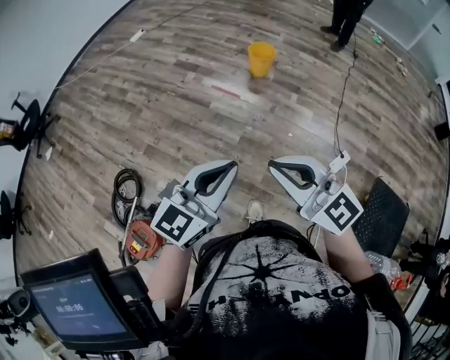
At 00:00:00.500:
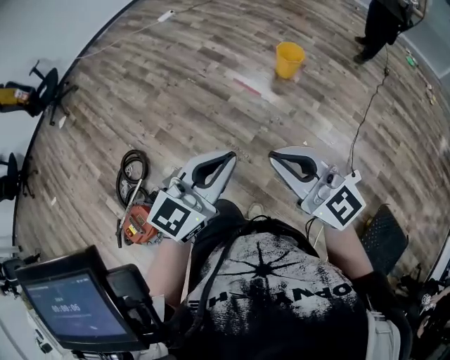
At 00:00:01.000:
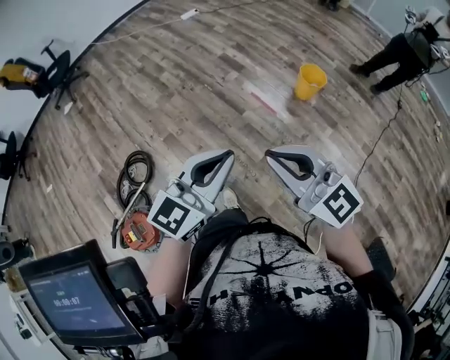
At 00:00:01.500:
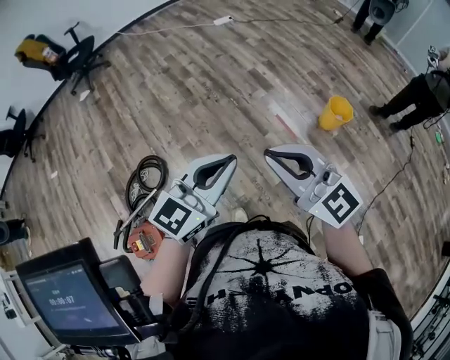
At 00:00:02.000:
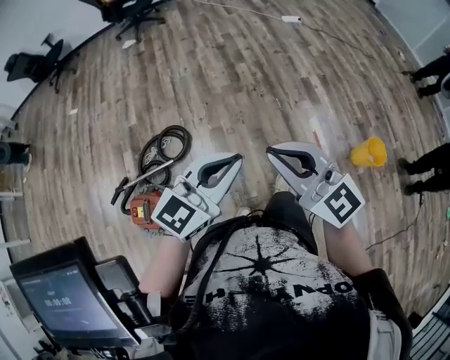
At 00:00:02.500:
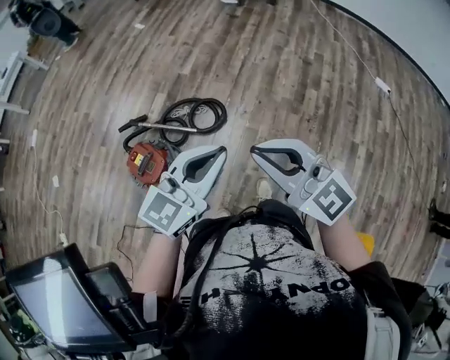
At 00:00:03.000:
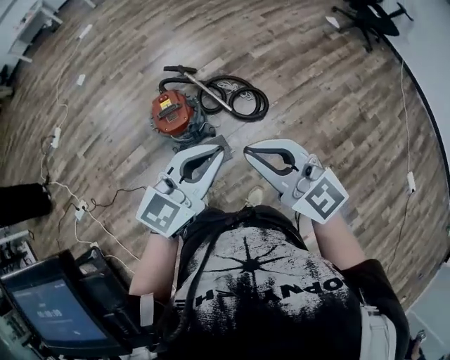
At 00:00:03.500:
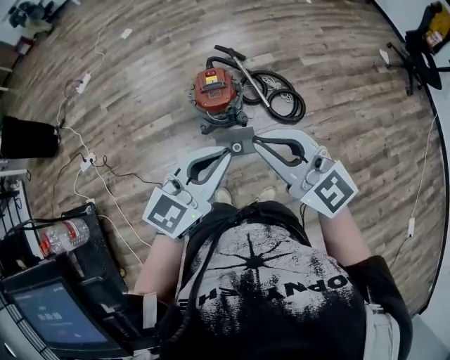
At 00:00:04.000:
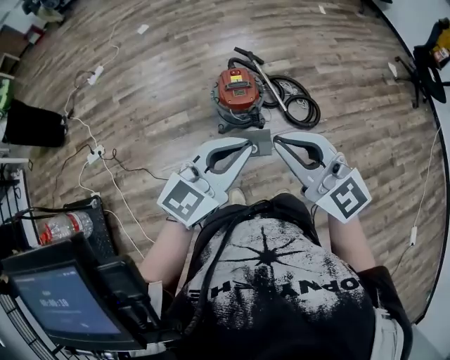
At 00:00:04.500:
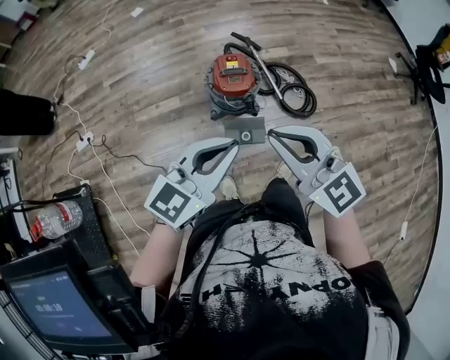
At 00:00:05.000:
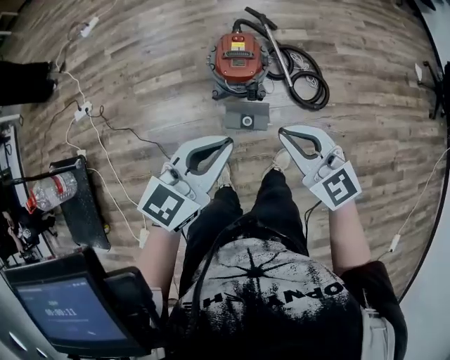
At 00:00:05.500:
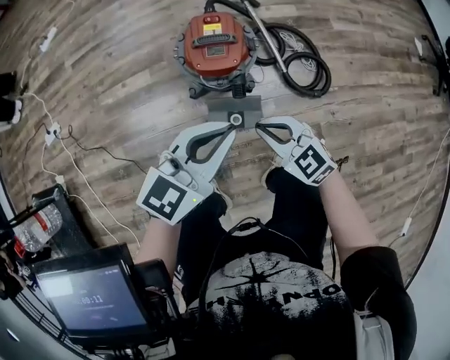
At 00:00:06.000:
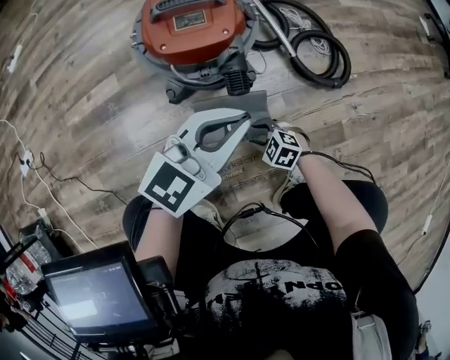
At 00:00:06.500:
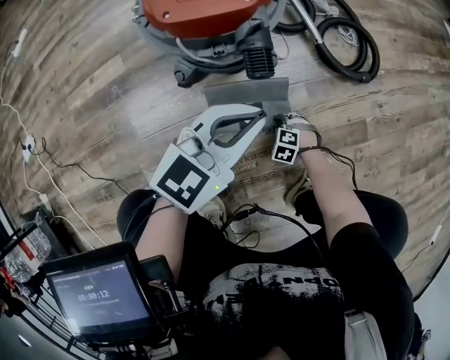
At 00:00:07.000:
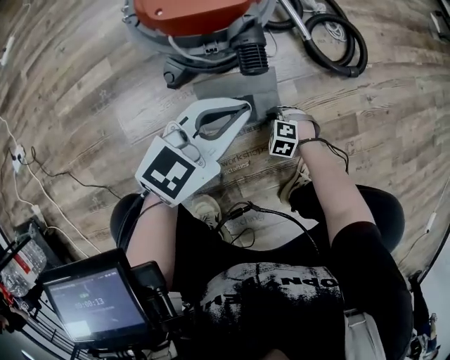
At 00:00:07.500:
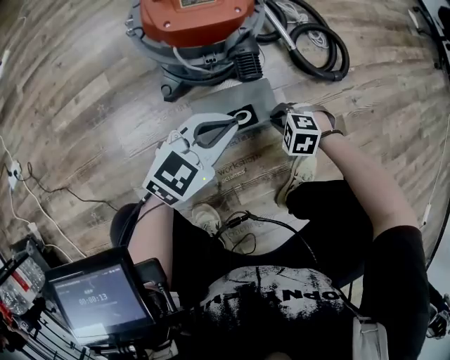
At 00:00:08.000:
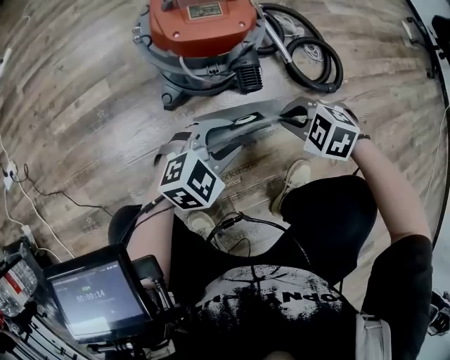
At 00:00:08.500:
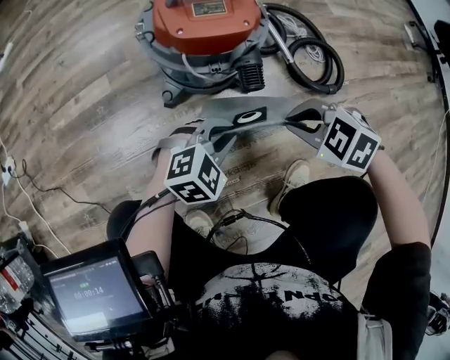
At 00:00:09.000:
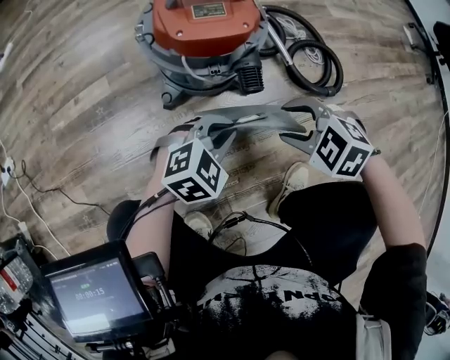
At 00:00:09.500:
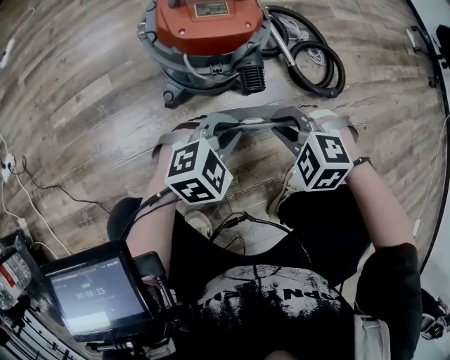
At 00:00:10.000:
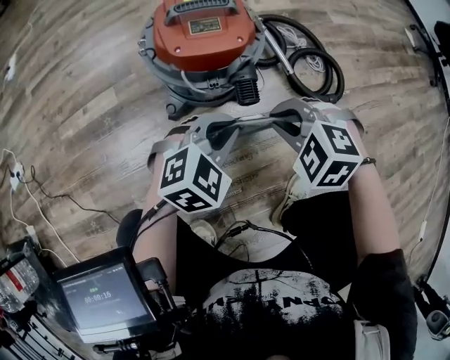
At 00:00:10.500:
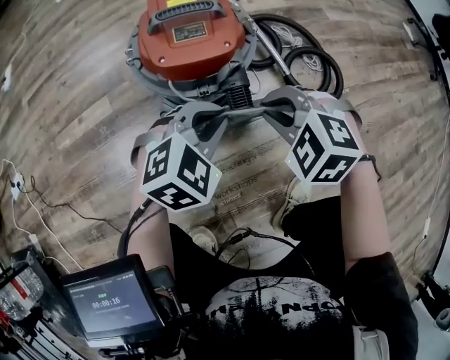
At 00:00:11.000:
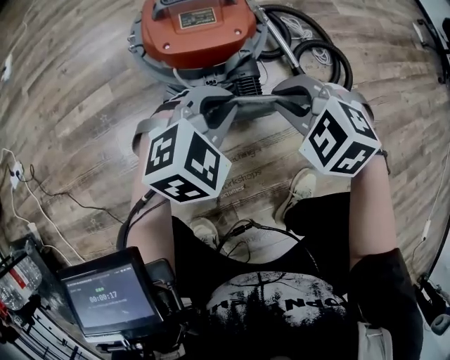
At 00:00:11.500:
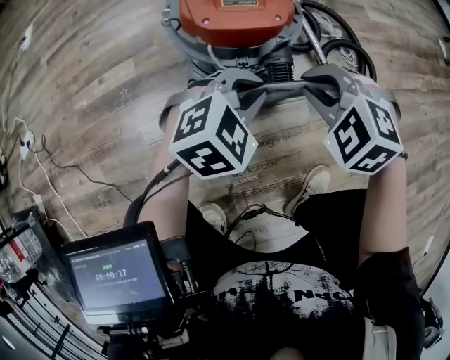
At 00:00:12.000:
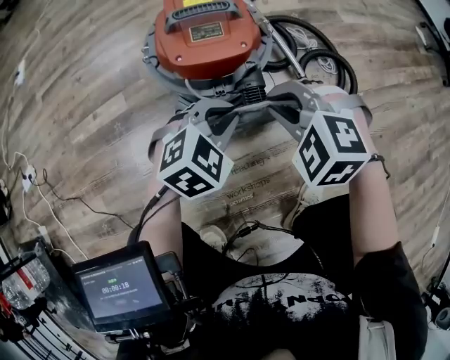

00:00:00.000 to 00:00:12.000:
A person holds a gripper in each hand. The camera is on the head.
00:00:00.000 to 00:00:02.000: Both grippers are carried some 50 cm. The left gripper turns by roughly 40 degrees. Meanwhile the right gripper rotates some 50 degrees.
00:00:02.000 to 00:00:04.000: The left gripper shifts by some 20 cm, and rotates about 90 degrees; the right gripper changes place by roughly 20 cm, and rotates roughly 90 degrees.
00:00:04.000 to 00:00:06.000: The left gripper heads downward, covering roughly 60 cm; the right gripper is displaced downward by approximately 90 cm, points its fingers roughly 60 degrees further downward, and opens.
00:00:06.000 to 00:00:08.000: The left gripper shifts about 15 cm downward, swivels some 30 degrees, and opens. The right gripper travels upward by roughly 15 cm, and closes its fingers.
00:00:08.000 to 00:00:10.000: The left gripper moves some 5 cm, and closes up. Meanwhile the right gripper shifts roughly 10 cm upward, and opens and closes again.
00:00:10.000 to 00:00:12.000: The right gripper moves approximately 5 cm.

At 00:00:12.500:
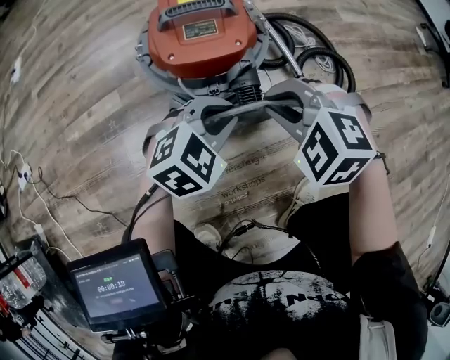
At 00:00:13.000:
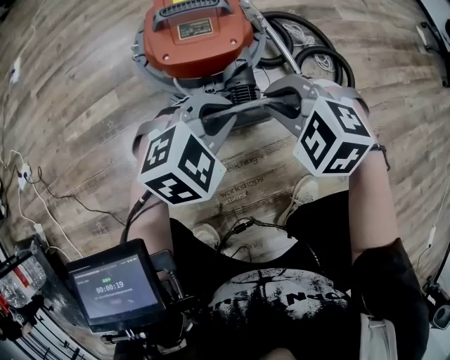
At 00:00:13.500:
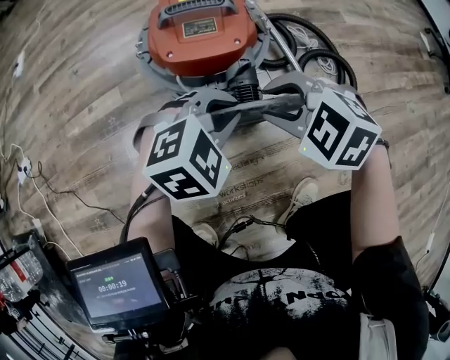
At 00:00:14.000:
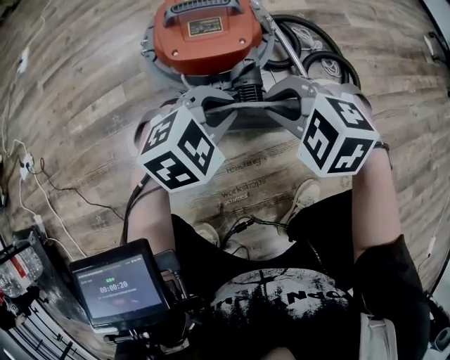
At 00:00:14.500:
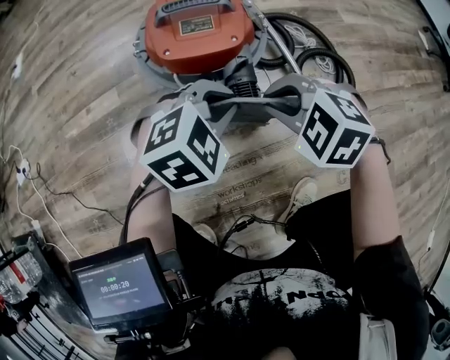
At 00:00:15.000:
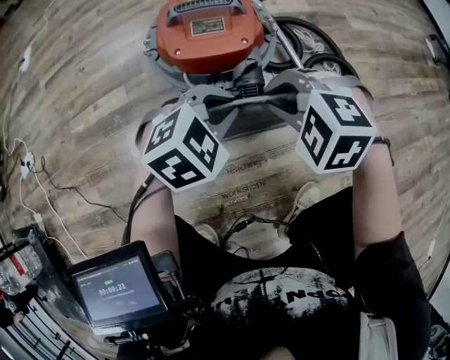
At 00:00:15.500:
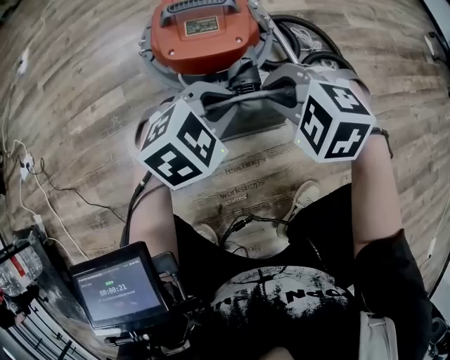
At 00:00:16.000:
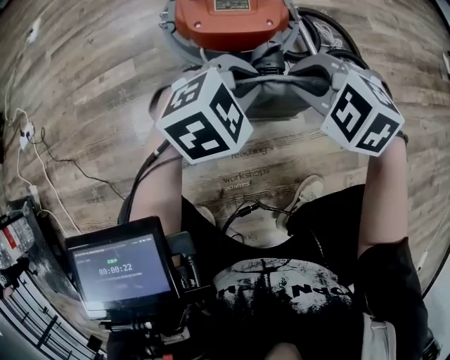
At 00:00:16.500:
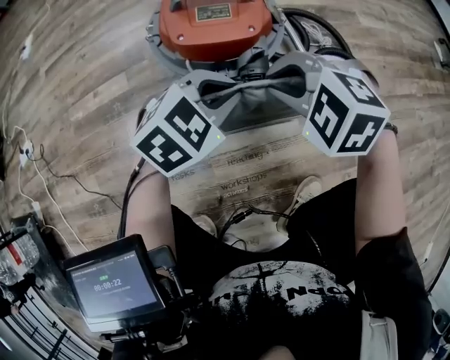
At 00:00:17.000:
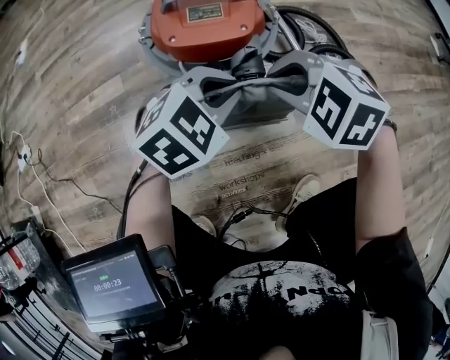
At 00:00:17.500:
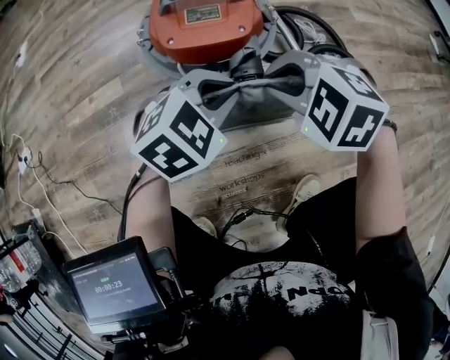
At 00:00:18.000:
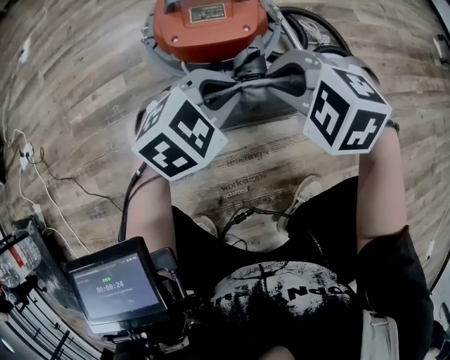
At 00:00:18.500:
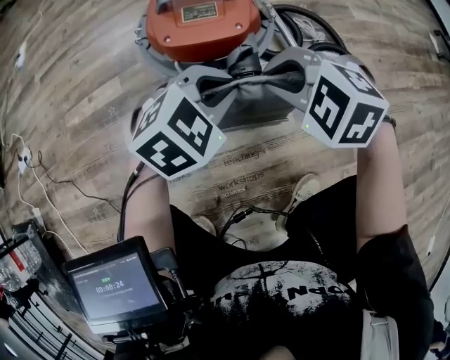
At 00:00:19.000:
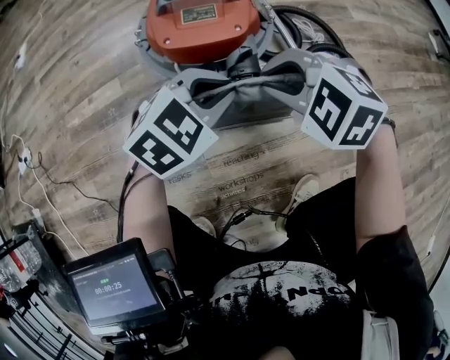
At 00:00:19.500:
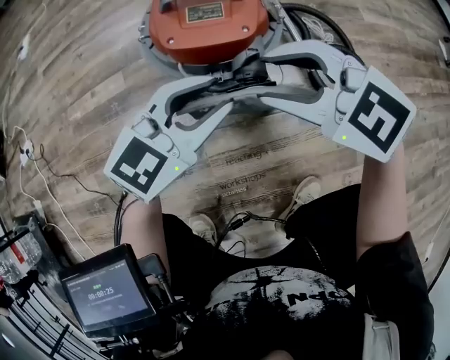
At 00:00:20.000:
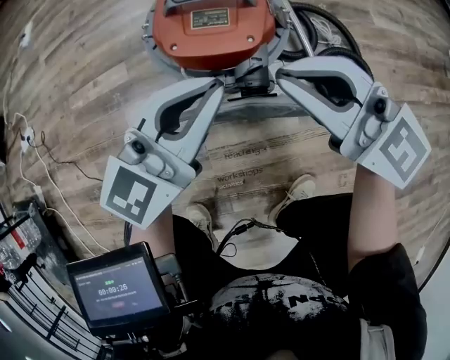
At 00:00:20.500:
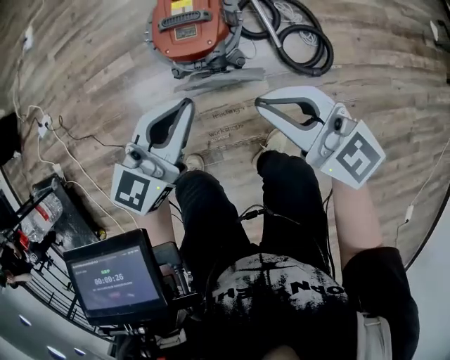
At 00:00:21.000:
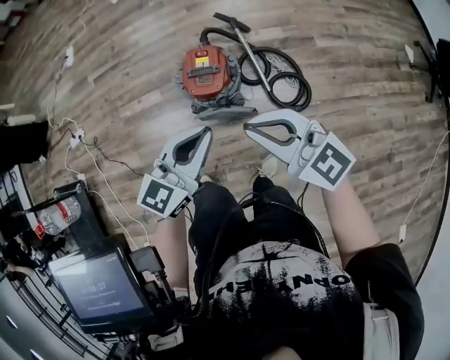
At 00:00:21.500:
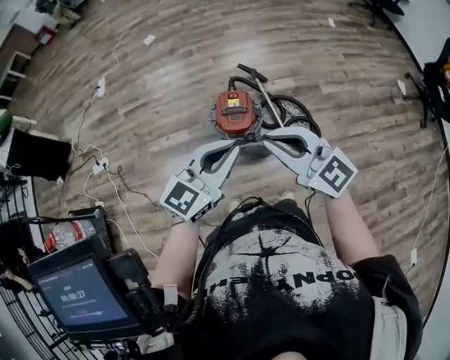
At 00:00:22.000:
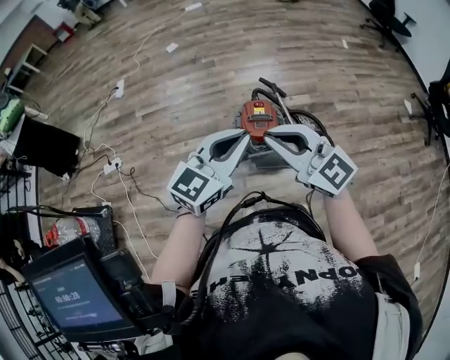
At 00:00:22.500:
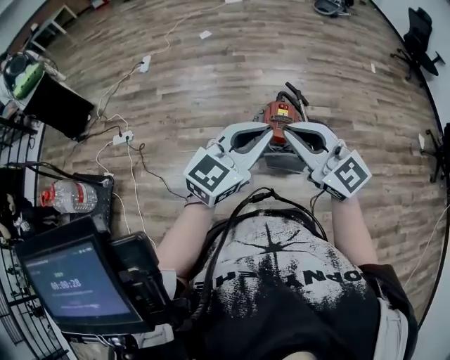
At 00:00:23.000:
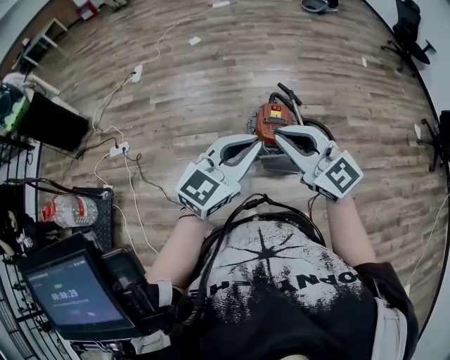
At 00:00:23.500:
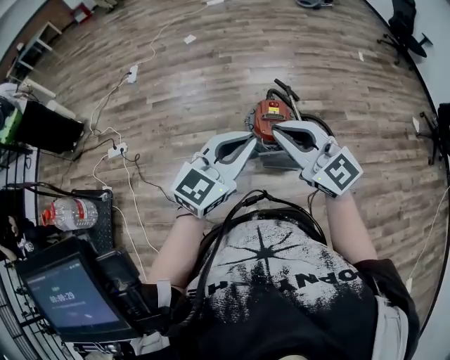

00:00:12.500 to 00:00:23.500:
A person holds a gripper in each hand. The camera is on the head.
00:00:12.500 to 00:00:14.500: The right gripper opens, then closes again.
00:00:14.500 to 00:00:18.000: The grippers move only a little.
00:00:18.000 to 00:00:20.000: The two grippers go roughly 10 cm upward. The right gripper tips its fingers upward by about 50 degrees, and opens, then closes once more. Meanwhile the left gripper angles its fingers upward, by some 40 degrees, and opens and closes again.
00:00:20.000 to 00:00:21.500: Both grippers move upward, approximately 50 cm.
00:00:21.500 to 00:00:23.500: Both grippers travel together to the left, about 15 cm.

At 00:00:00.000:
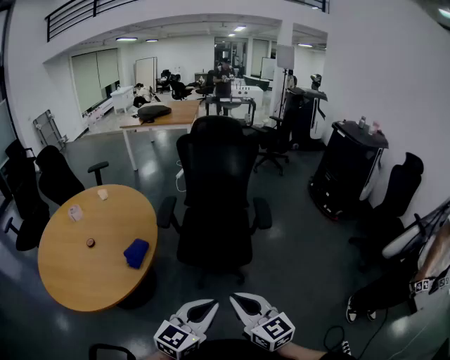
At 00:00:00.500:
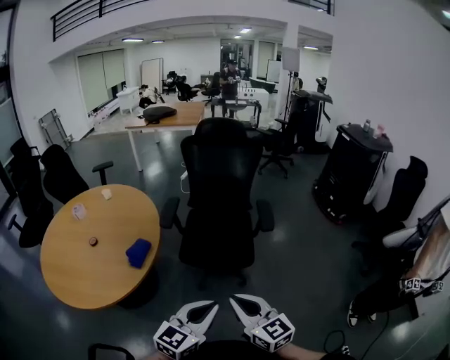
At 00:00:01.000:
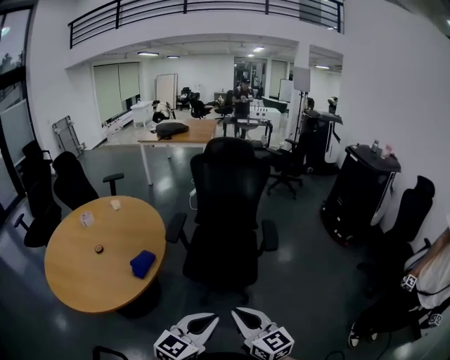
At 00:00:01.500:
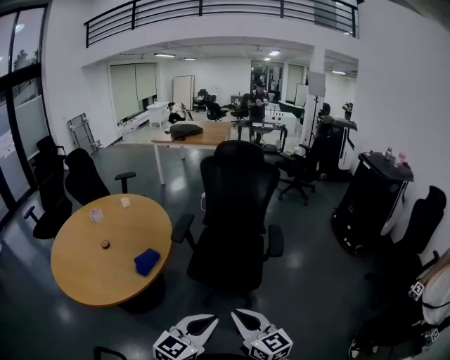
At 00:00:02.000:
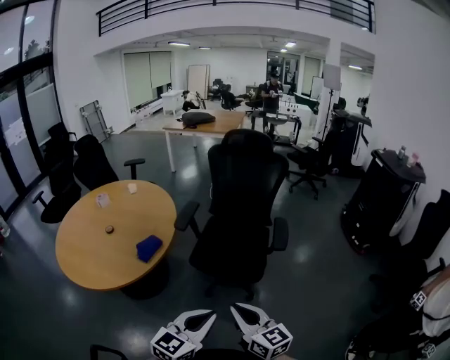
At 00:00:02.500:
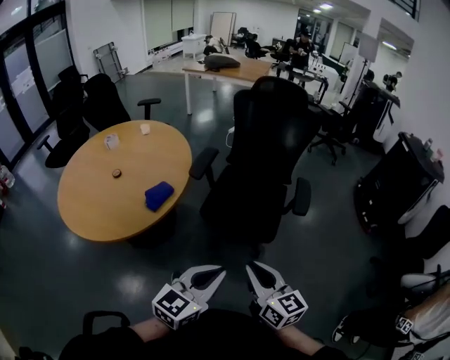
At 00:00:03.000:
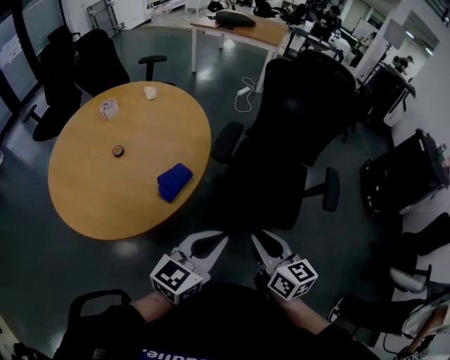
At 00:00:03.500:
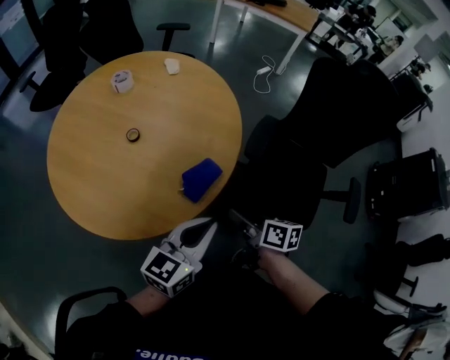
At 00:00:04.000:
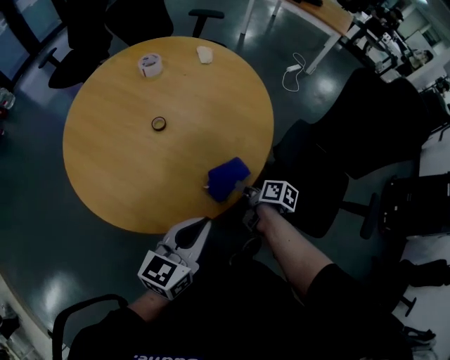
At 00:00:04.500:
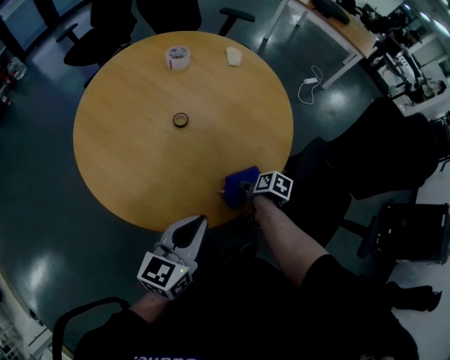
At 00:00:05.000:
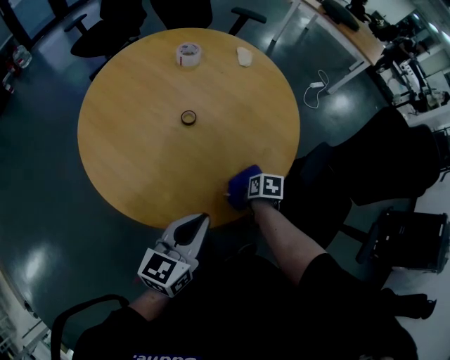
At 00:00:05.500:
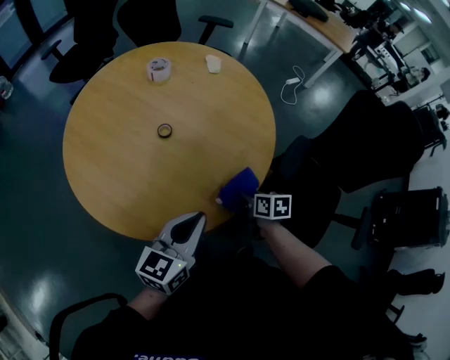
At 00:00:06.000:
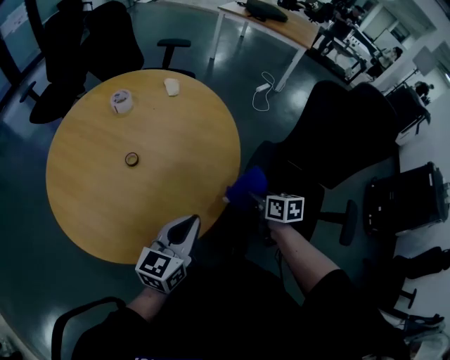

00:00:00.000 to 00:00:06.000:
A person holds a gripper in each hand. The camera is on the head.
00:00:00.000 to 00:00:02.000: Both grippers travel together to the right, approximately 5 cm.
00:00:02.000 to 00:00:04.000: The pair of grippers is taken to the left and forward, some 50 cm. The right gripper goes approximately 30 cm downward, angles its fingers downward, by approximately 40 degrees, and opens its fingers, while the left gripper swivels roughly 30 degrees.
00:00:04.000 to 00:00:06.000: The right gripper goes about 15 cm to the right and upward, rotates about 30 degrees, and closes its fingers; the left gripper shifts roughly 5 cm forward.
